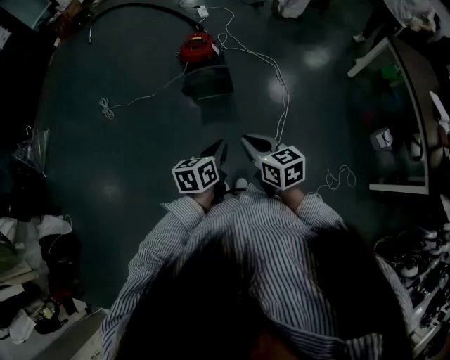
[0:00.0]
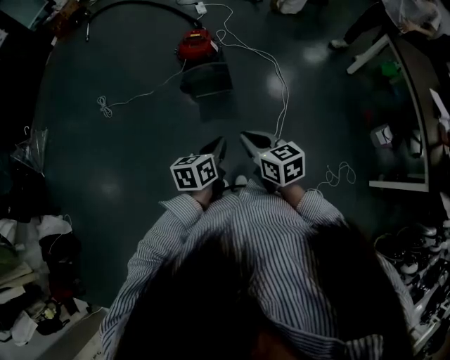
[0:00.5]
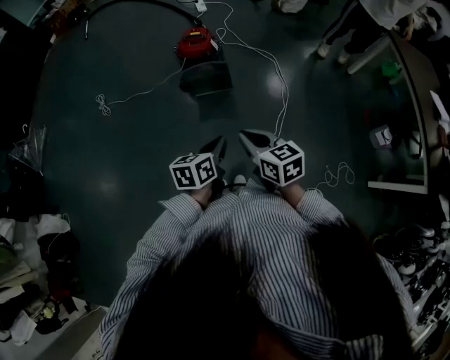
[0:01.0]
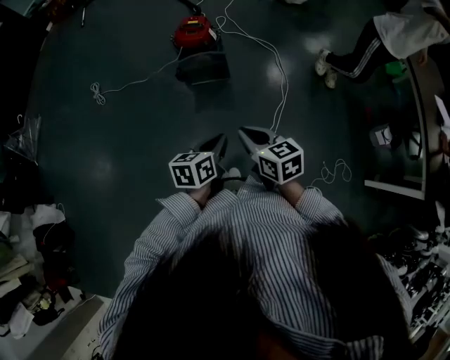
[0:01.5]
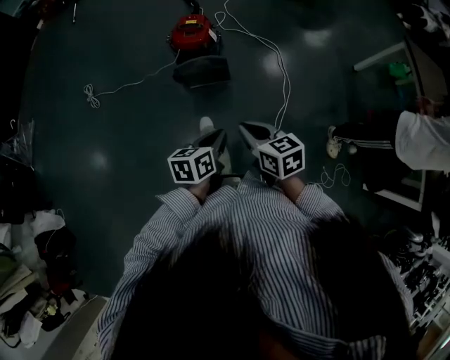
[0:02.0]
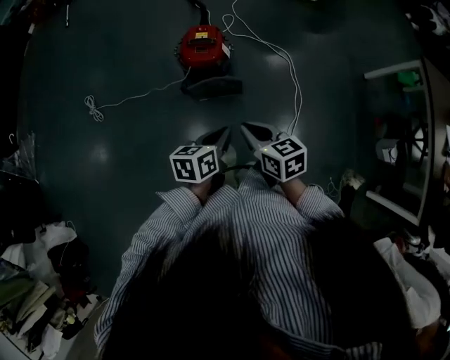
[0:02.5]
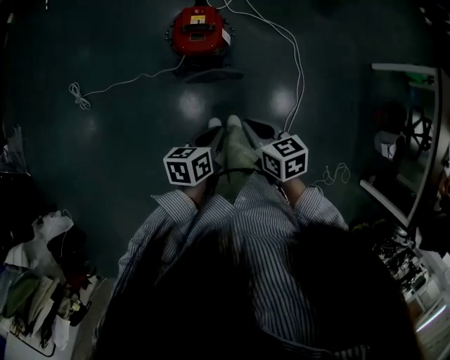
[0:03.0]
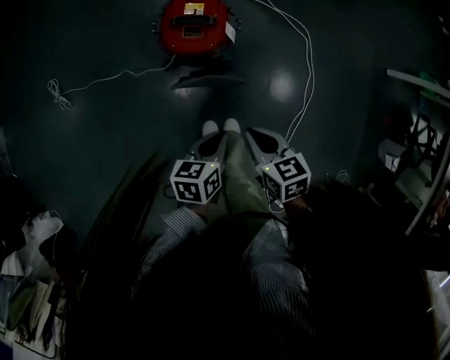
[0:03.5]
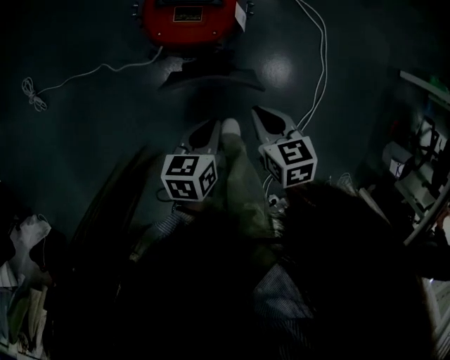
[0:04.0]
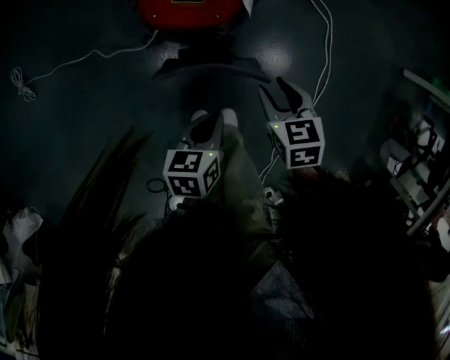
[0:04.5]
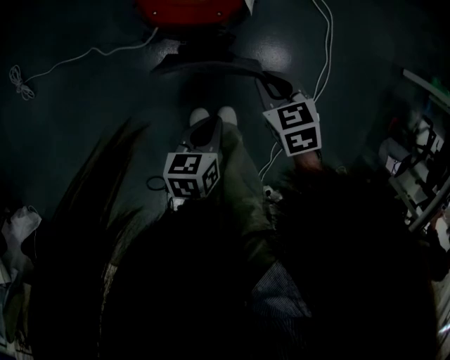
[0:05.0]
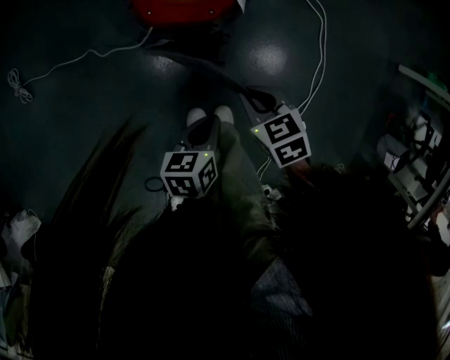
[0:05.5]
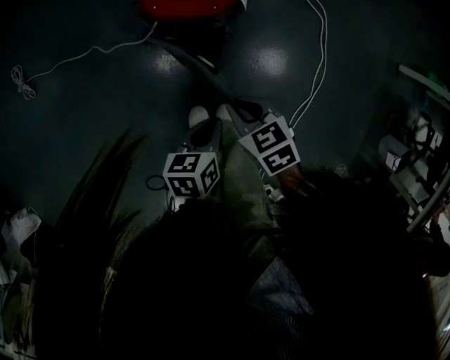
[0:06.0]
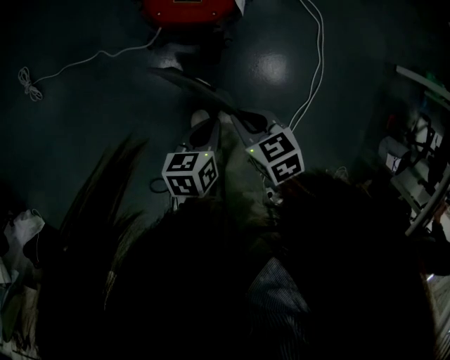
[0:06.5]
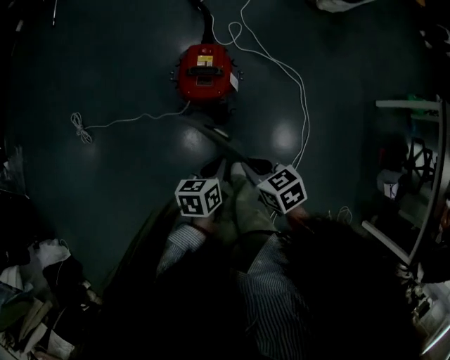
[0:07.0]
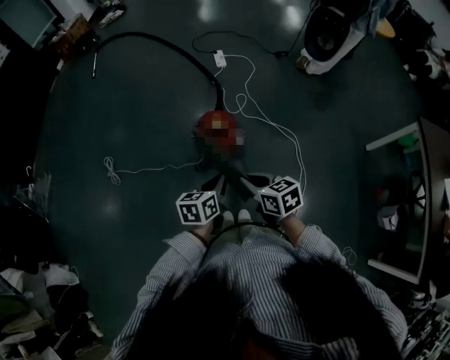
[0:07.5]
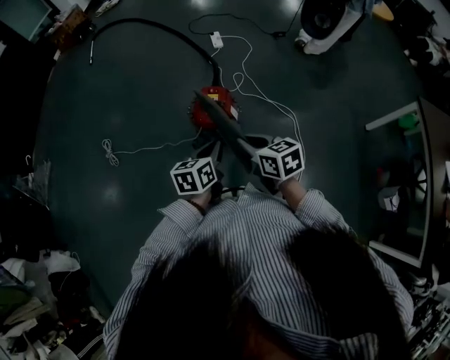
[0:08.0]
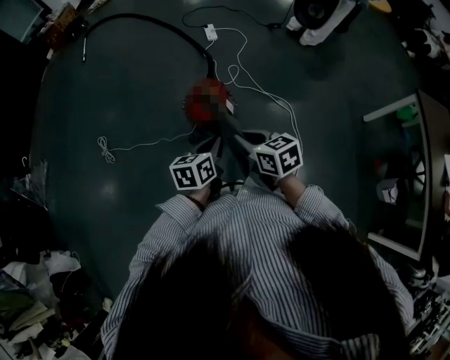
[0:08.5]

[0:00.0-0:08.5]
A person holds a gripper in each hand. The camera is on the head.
0:00.0 to 0:02.0: The grippers both shift forward by approximately 15 cm.
0:02.0 to 0:04.0: The left gripper heads forward and downward, covering some 50 cm. Meanwhile the right gripper shifts approximately 50 cm downward and forward.
0:04.0 to 0:06.5: The right gripper heads backward and to the left, covering approximately 10 cm, and opens, then closes again, while the left gripper goes about 5 cm backward.
0:06.5 to 0:08.5: The two grippers go about 40 cm upward. The right gripper rotates about 20 degrees. Meanwhile the left gripper turns by approximately 20 degrees.

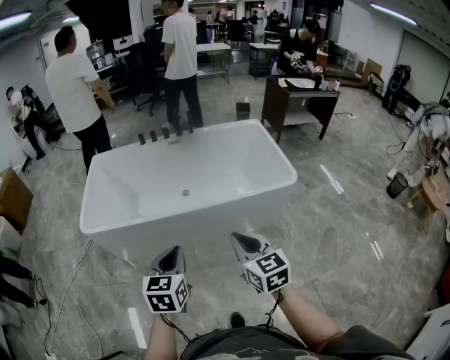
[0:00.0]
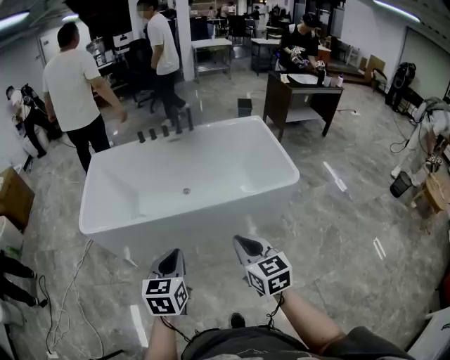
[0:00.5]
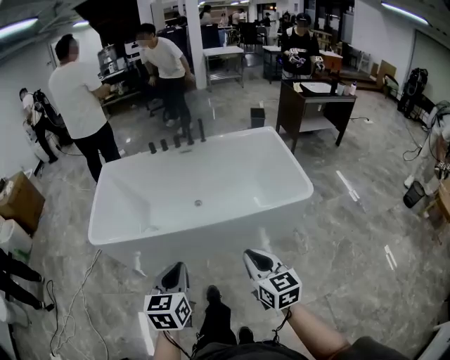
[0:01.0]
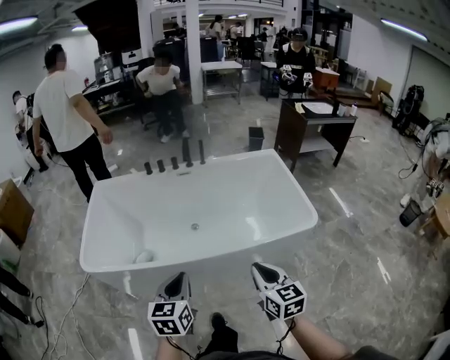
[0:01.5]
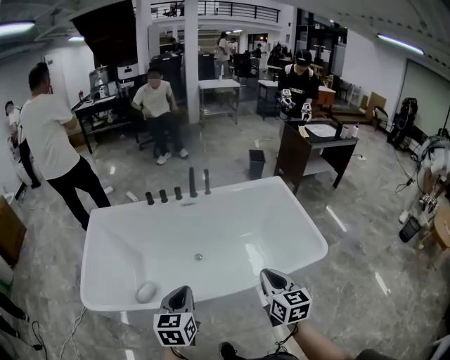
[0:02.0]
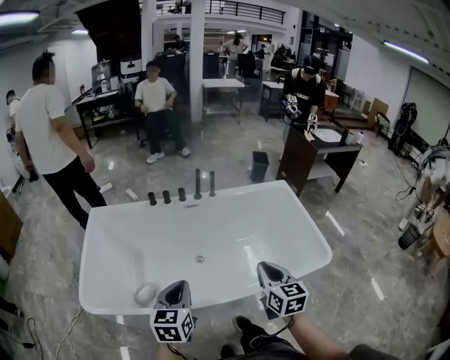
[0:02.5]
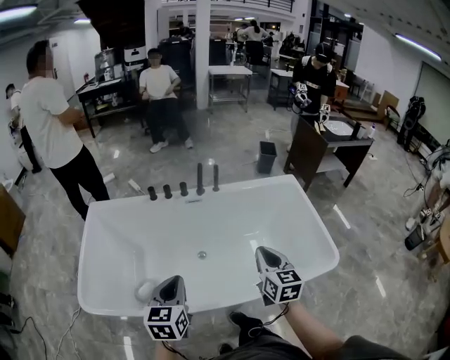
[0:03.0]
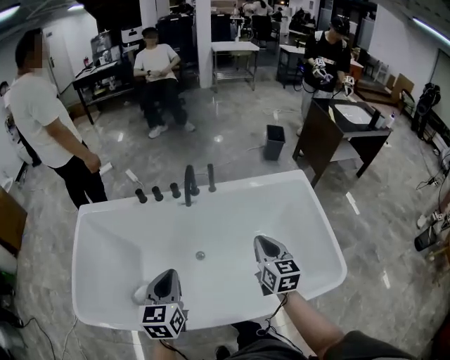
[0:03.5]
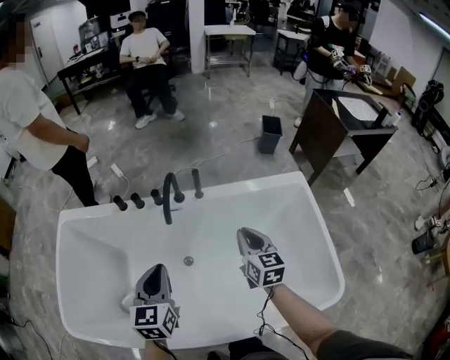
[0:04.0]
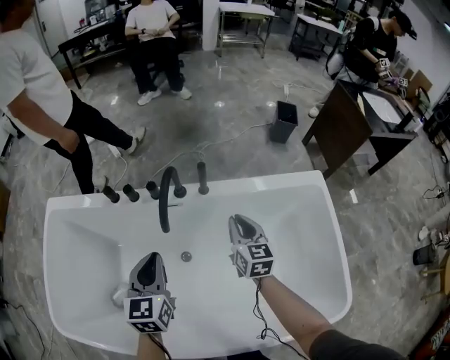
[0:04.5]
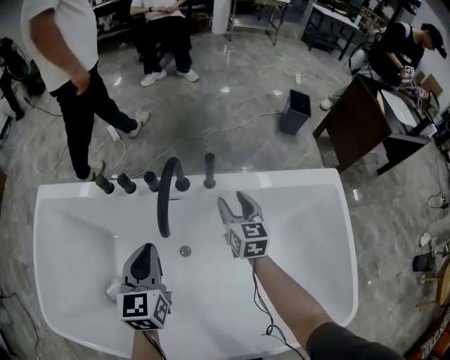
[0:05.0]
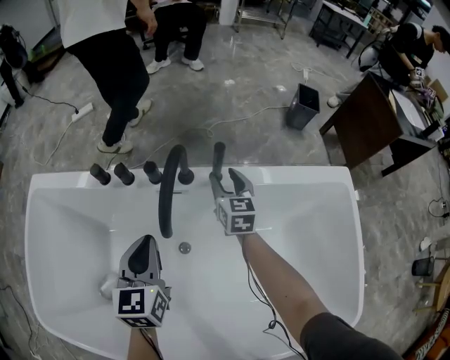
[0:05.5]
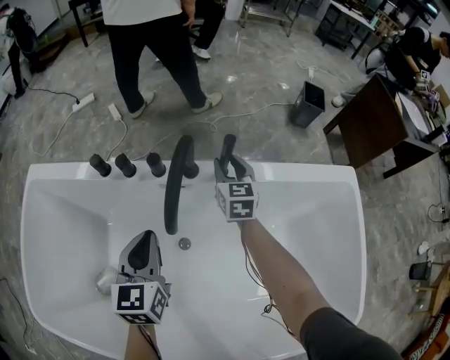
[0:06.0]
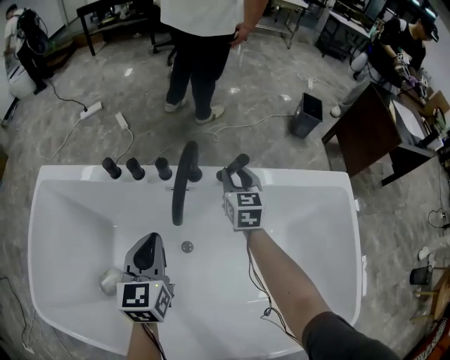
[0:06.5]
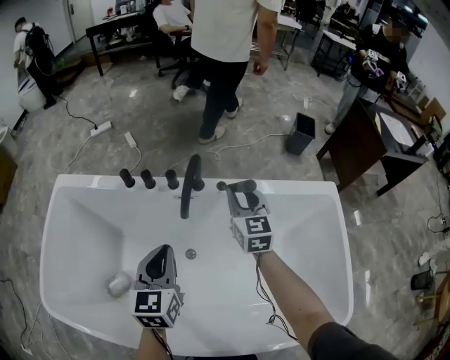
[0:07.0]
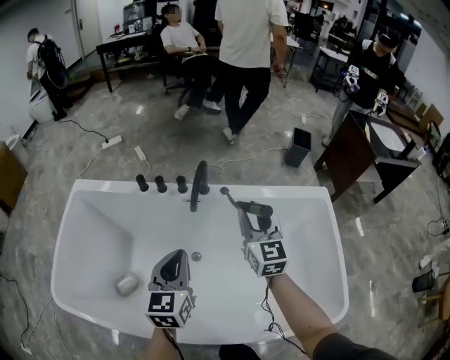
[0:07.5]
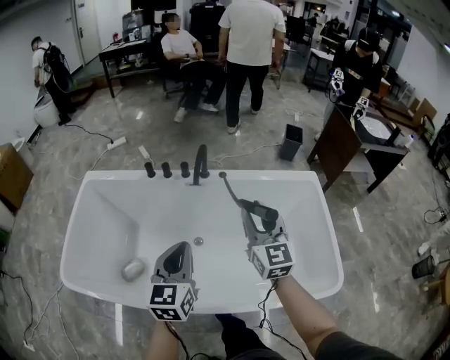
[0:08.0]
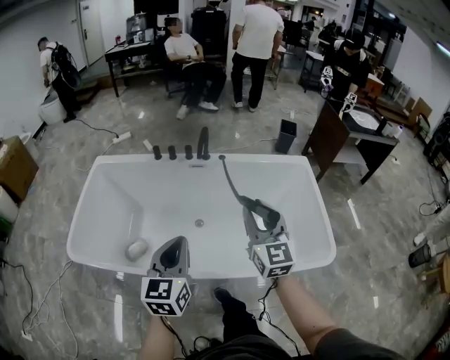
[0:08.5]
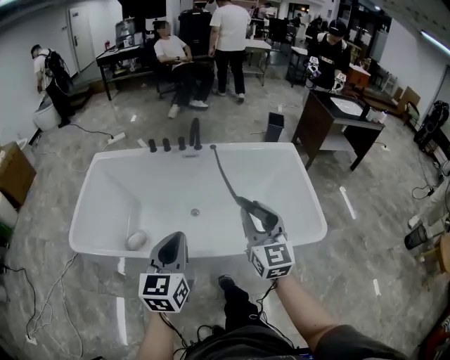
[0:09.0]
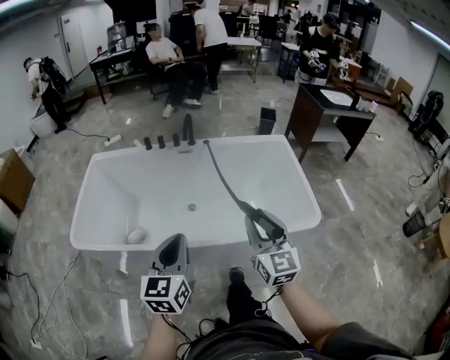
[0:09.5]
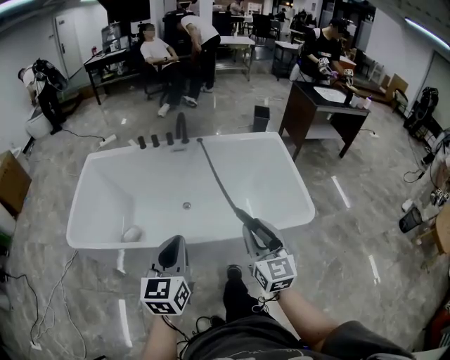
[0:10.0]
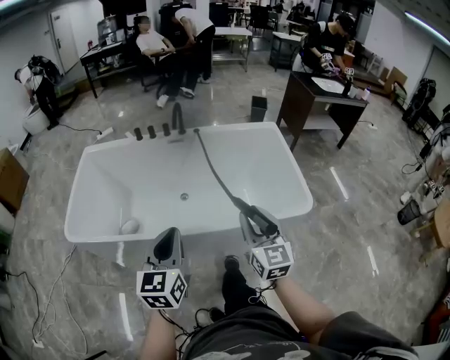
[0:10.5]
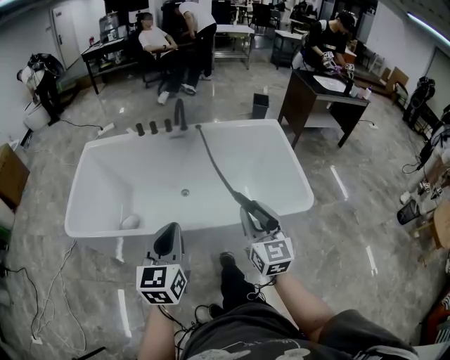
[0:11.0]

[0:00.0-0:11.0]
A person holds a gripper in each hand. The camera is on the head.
0:00.0 to 0:02.0: Both grippers travel together forward, approximately 35 cm.
0:02.0 to 0:03.5: Both grippers move forward, approximately 30 cm.
0:03.5 to 0:05.5: The two grippers go approximately 40 cm forward and downward. The right gripper opens up.
0:05.5 to 0:07.5: The left gripper goes approximately 25 cm backward and upward. The right gripper travels upward and backward by some 35 cm.
0:07.5 to 0:09.0: Both grippers are carried backward, approximately 40 cm.
0:09.0 to 0:11.0: The two grippers go approximately 10 cm backward.

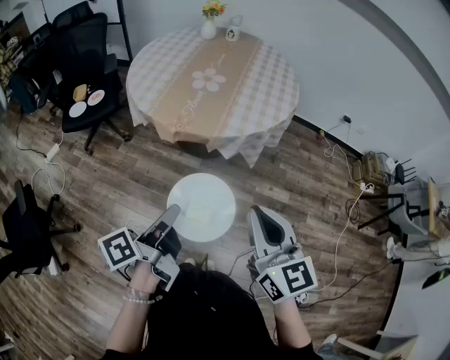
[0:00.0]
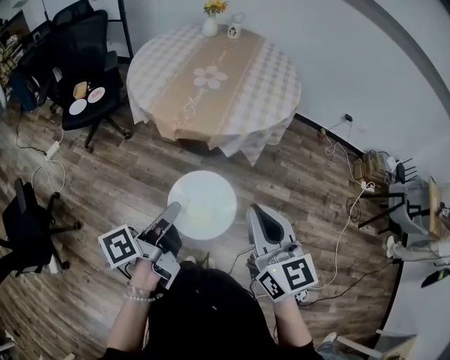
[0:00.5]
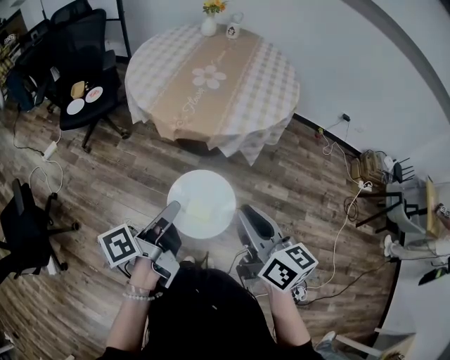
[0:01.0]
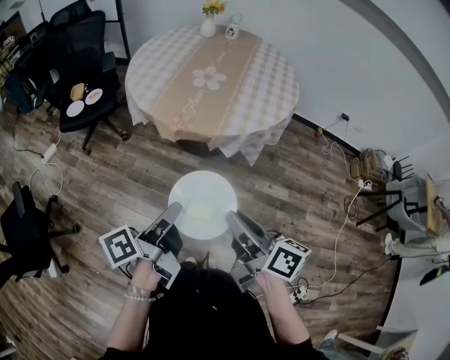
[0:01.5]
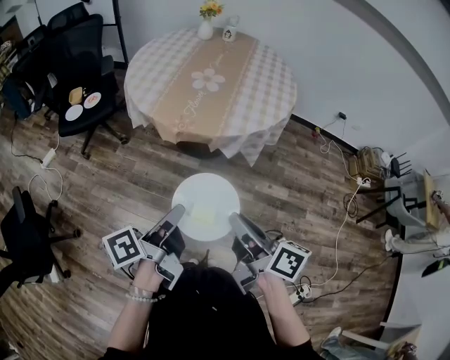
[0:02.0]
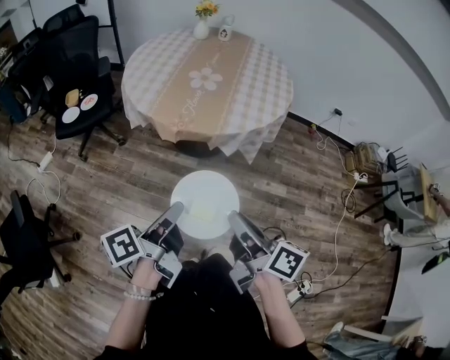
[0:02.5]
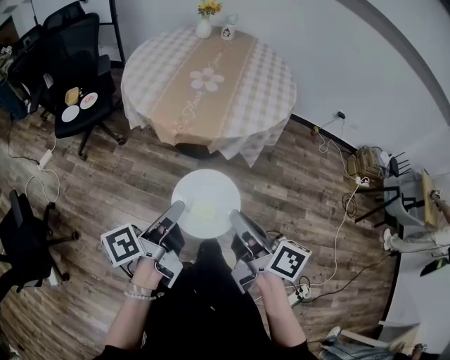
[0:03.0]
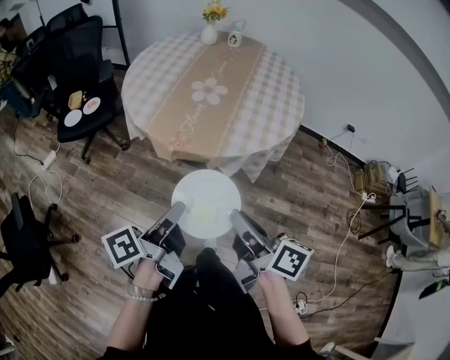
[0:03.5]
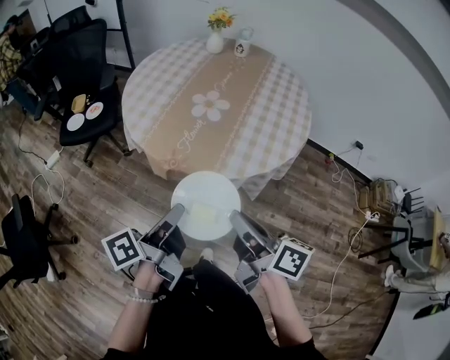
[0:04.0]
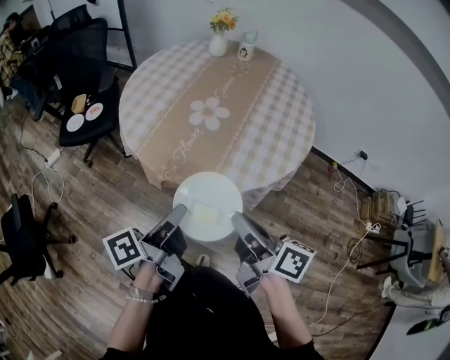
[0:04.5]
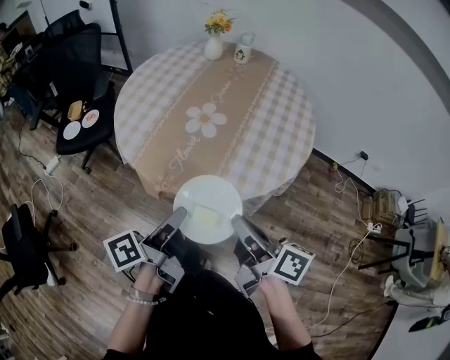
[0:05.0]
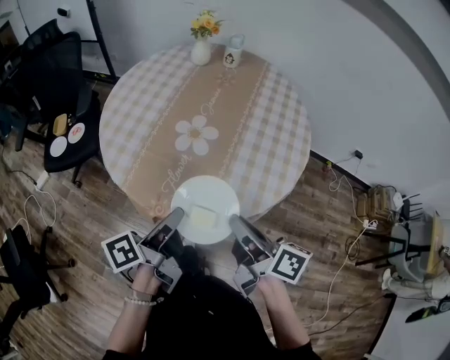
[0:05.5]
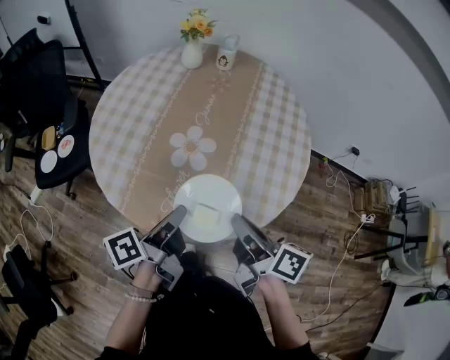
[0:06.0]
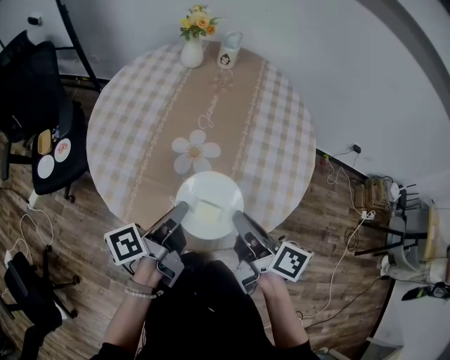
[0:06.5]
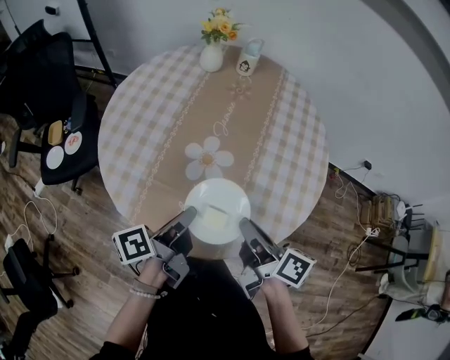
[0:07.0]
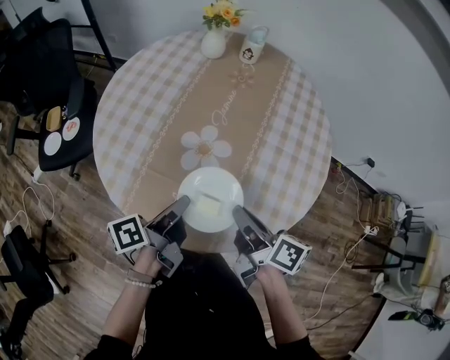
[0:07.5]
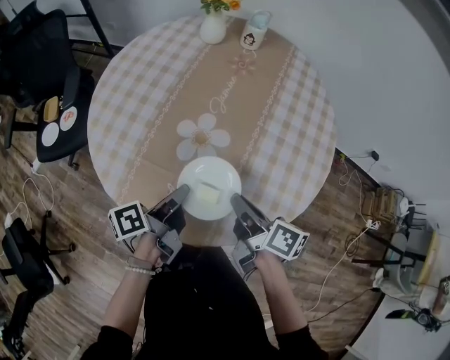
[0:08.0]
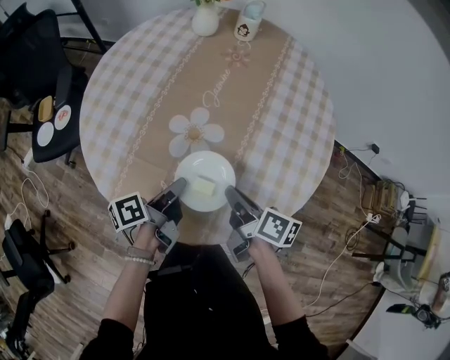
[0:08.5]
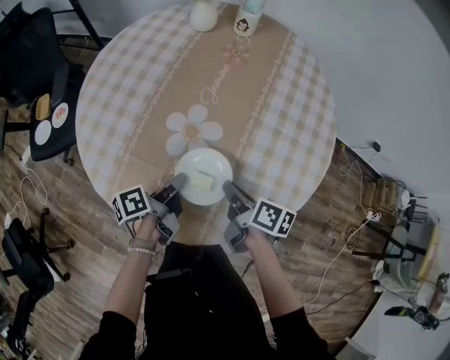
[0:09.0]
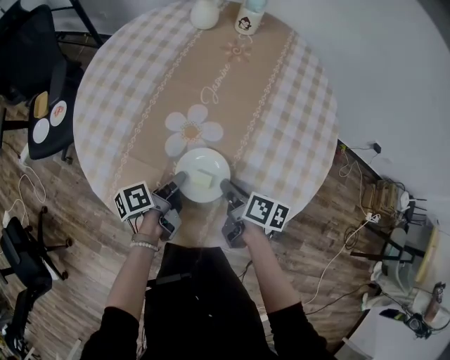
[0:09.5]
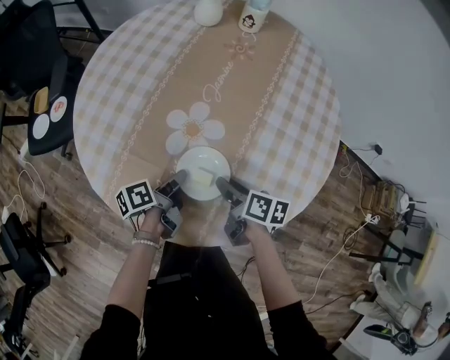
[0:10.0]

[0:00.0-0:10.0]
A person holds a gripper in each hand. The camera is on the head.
0:00.0 to 0:02.0: The right gripper travels downward by some 5 cm, and rotates around the line of its fingers by some 50 degrees, clockwise from behind.
0:02.0 to 0:04.0: The right gripper changes place by some 20 cm.
0:04.0 to 0:06.0: The right gripper moves approximately 20 cm.
0:06.0 to 0:08.0: The right gripper shifts by some 15 cm.
0:08.0 to 0:10.0: The right gripper is displaced downward by about 15 cm, and opens up.
